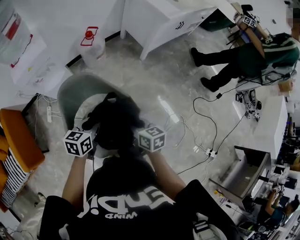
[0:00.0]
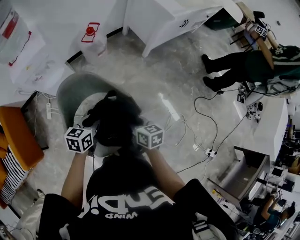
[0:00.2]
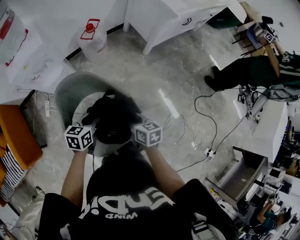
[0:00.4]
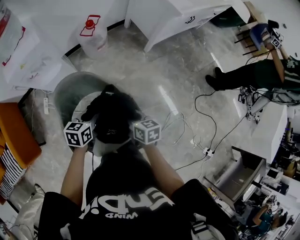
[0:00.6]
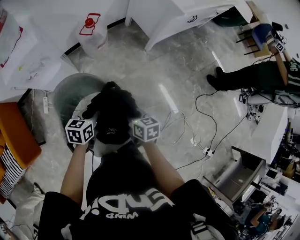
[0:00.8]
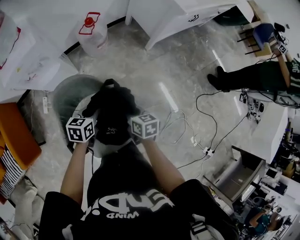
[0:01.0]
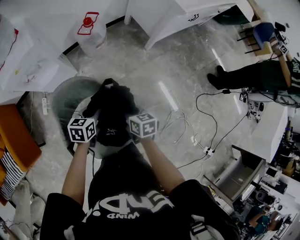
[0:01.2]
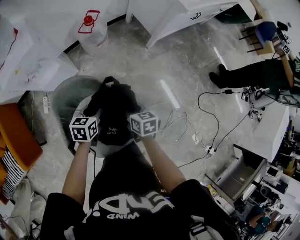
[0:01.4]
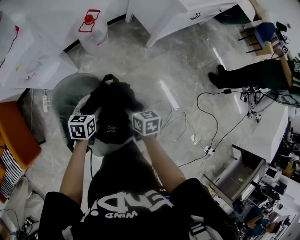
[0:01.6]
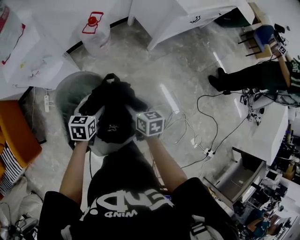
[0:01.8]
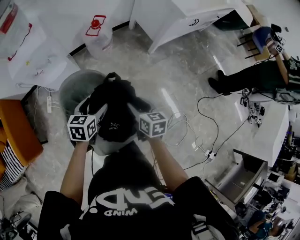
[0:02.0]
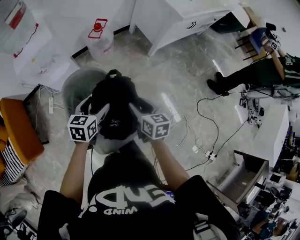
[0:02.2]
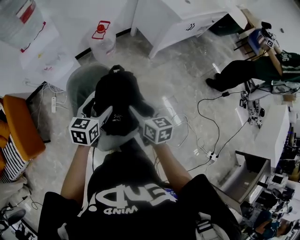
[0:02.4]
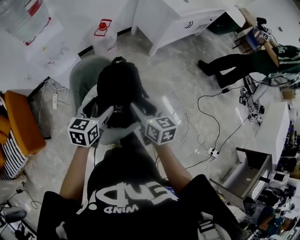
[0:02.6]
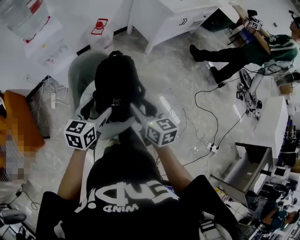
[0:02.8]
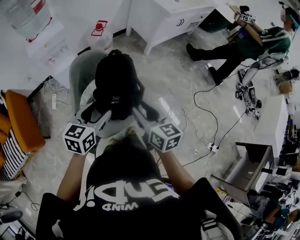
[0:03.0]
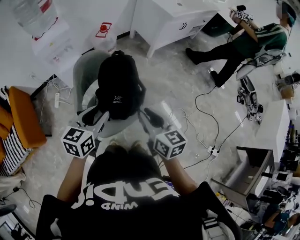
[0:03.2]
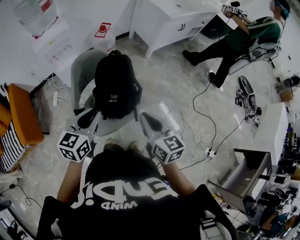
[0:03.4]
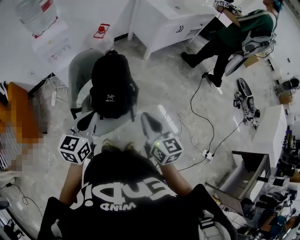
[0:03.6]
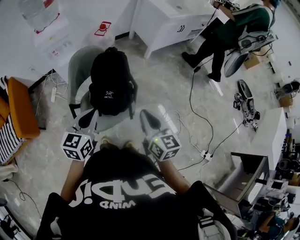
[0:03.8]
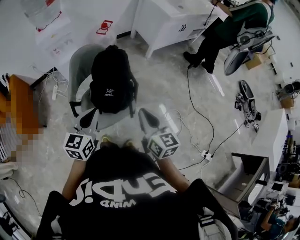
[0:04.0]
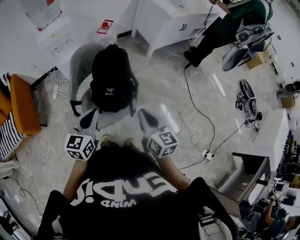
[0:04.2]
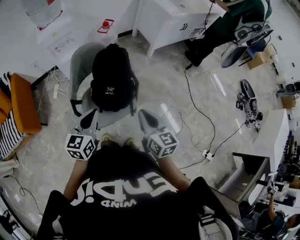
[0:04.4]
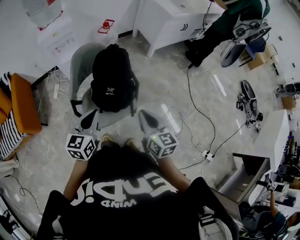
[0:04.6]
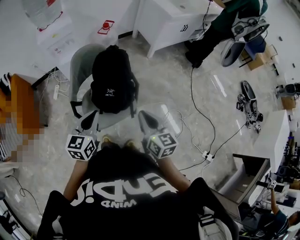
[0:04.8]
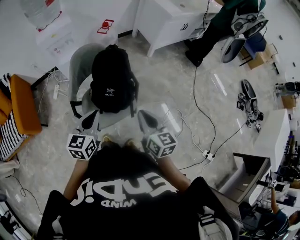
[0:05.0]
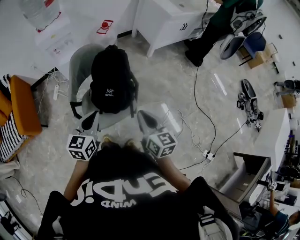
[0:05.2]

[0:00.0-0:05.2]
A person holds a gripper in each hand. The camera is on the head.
0:00.0 to 0:01.8: The grippers both shift forward and downward by about 15 cm. The left gripper opens up. Meanwhile the right gripper opens.
0:01.8 to 0:03.4: The two grippers go roughly 40 cm backward and upward. The right gripper rotates some 20 degrees, and closes up; the left gripper swivels some 30 degrees, and closes.
0:03.4 to 0:05.2: The left gripper travels downward by about 5 cm, while the right gripper shifts by about 5 cm.

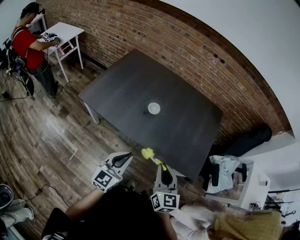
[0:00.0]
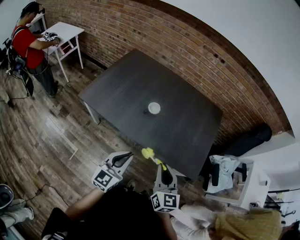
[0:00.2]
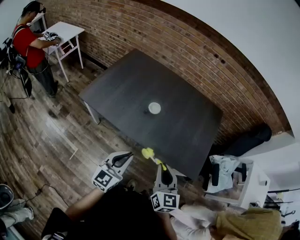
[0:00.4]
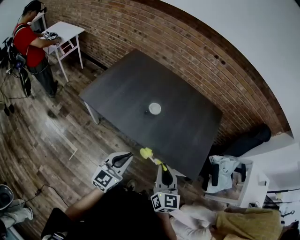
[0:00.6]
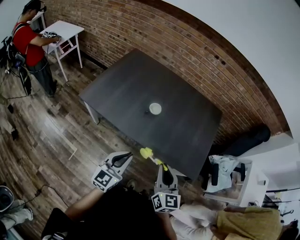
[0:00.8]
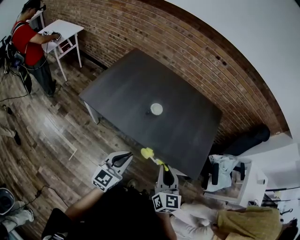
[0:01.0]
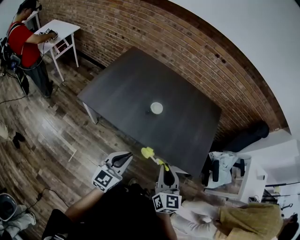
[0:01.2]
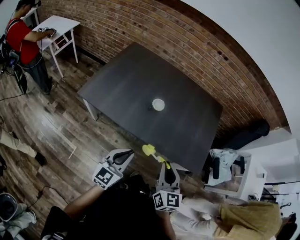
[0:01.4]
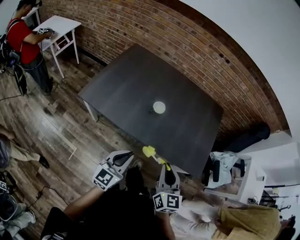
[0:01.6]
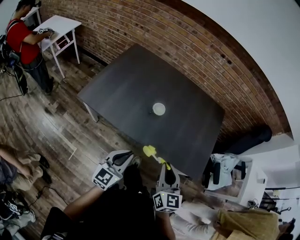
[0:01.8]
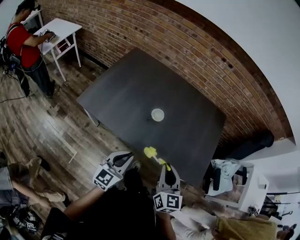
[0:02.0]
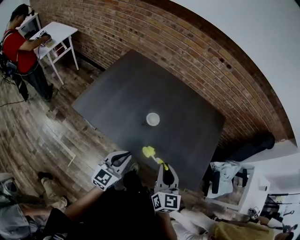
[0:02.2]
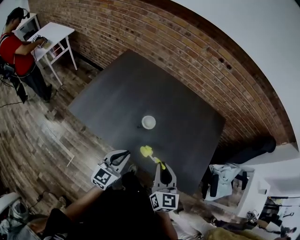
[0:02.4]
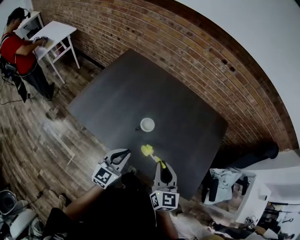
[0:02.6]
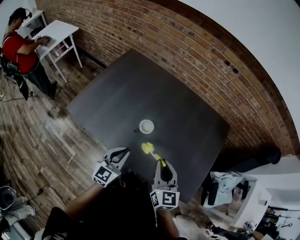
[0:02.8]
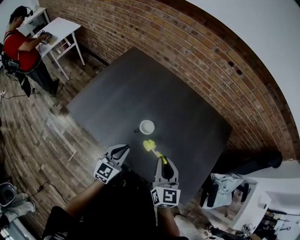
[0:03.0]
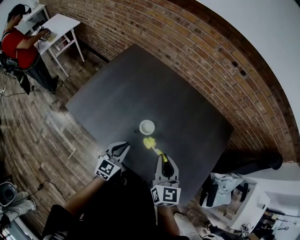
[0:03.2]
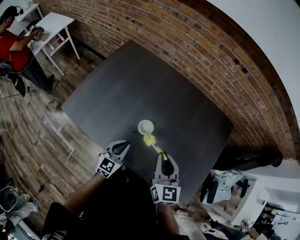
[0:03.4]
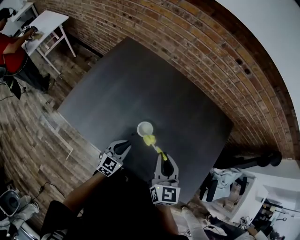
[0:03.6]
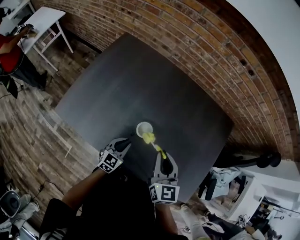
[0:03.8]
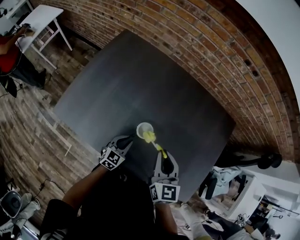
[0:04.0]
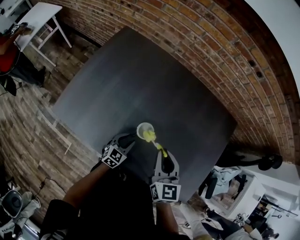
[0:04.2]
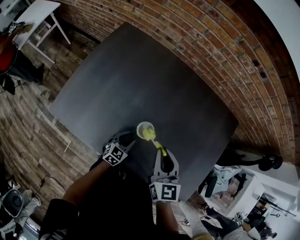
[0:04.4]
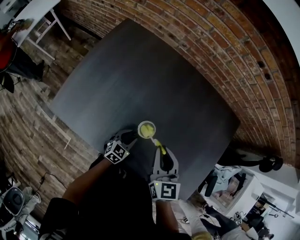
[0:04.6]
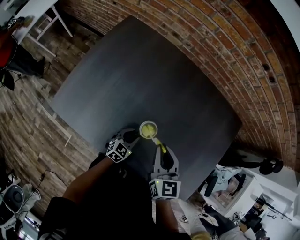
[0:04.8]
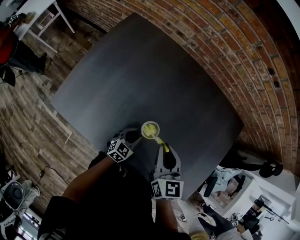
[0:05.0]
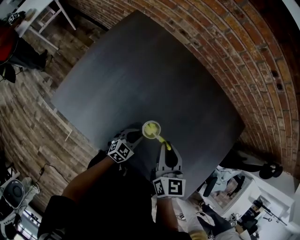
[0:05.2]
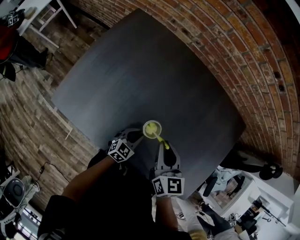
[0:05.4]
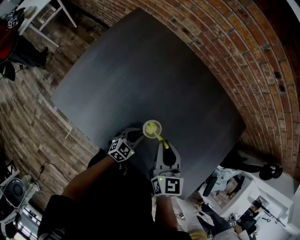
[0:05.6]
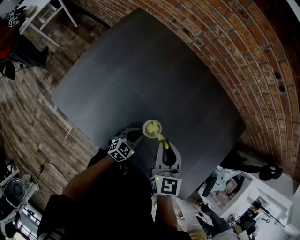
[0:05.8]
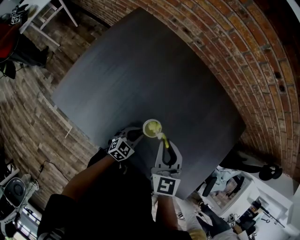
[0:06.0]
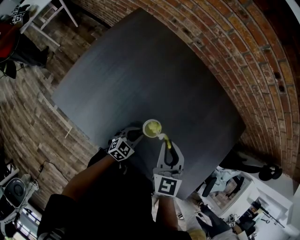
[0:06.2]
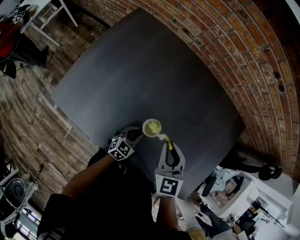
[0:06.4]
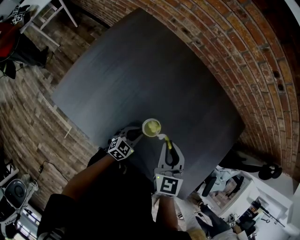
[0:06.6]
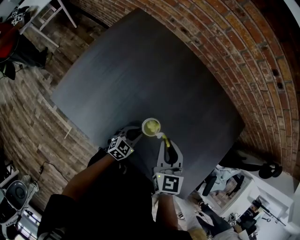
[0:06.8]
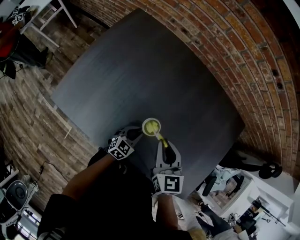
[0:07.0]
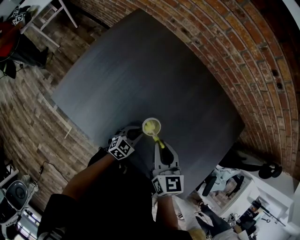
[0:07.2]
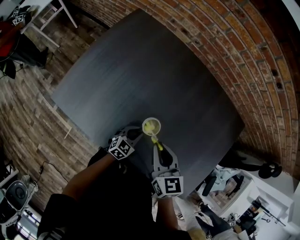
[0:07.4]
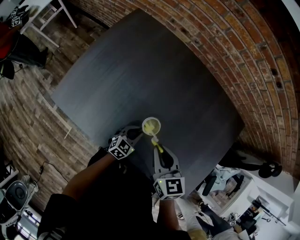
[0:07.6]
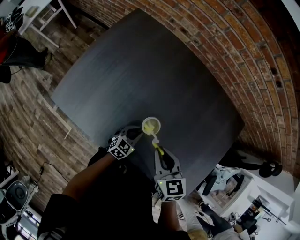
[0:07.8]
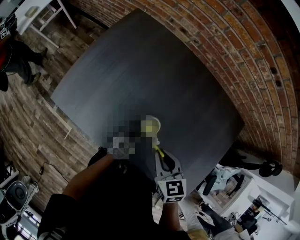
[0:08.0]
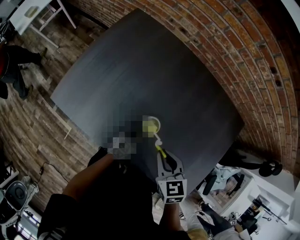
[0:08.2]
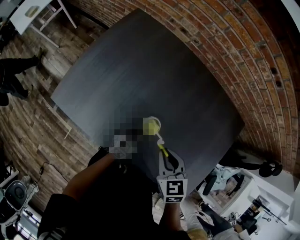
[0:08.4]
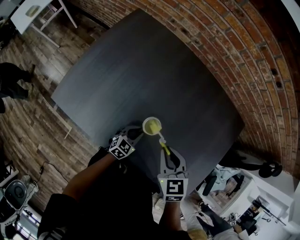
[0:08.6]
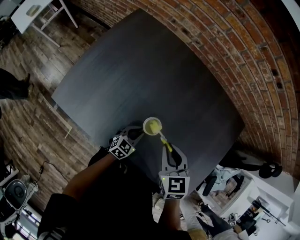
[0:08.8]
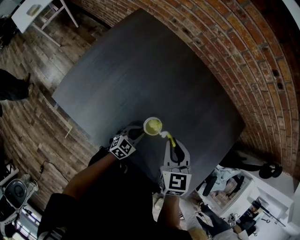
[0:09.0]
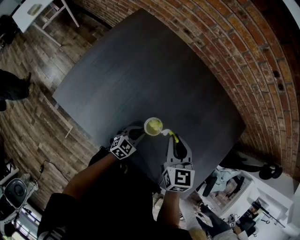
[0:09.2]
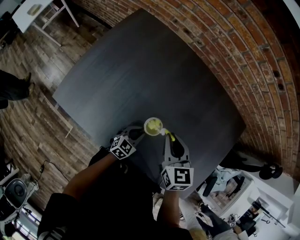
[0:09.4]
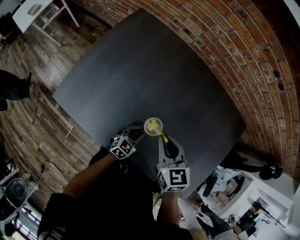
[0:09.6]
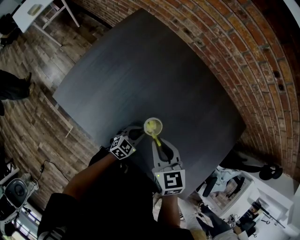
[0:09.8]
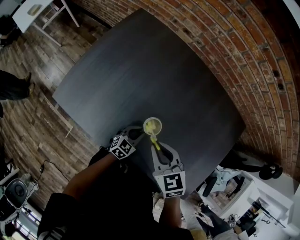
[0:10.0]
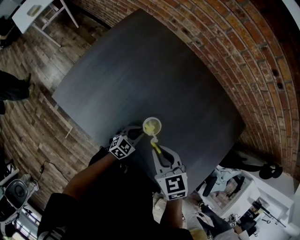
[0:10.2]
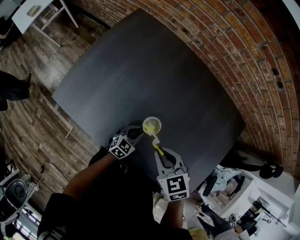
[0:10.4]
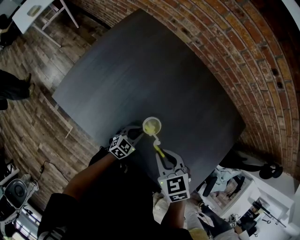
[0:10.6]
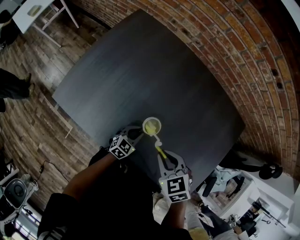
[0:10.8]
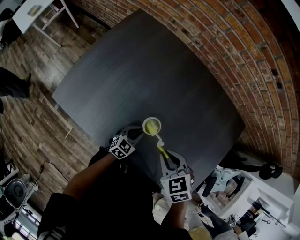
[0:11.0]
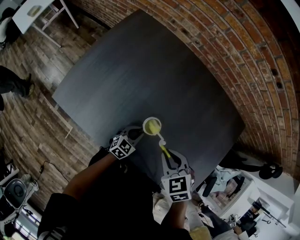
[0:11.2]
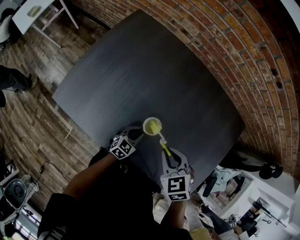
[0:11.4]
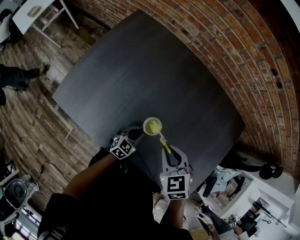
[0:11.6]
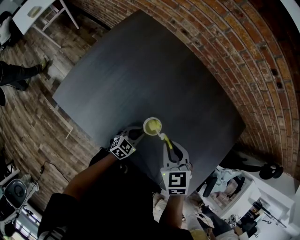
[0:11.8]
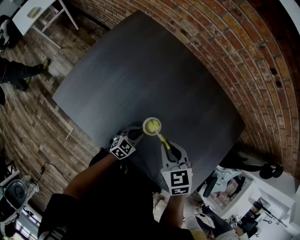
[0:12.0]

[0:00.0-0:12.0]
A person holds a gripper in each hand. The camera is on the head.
0:00.0 to 0:01.6: The grippers both shift to the left by roughly 5 cm.
0:01.6 to 0:03.0: The grippers both shift forward by some 25 cm.
0:03.0 to 0:04.4: The left gripper is displaced downward and forward by some 25 cm, changes its angle by approximately 30 degrees, and opens up, while the right gripper moves forward, to the left and downward, roughly 15 cm.
0:04.4 to 0:06.0: The right gripper changes place by approximately 5 cm.
0:06.0 to 0:07.6: The grippers stay close to where they were, moving slightly.
0:07.6 to 0:09.0: The grippers make only small movements.
0:09.0 to 0:10.4: The right gripper moves backward, about 5 cm, and rotates roughly 30 degrees.
0:10.4 to 0:12.0: There are only small adjustments of the grippers.

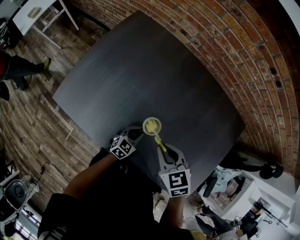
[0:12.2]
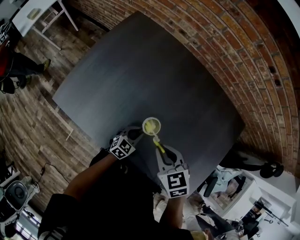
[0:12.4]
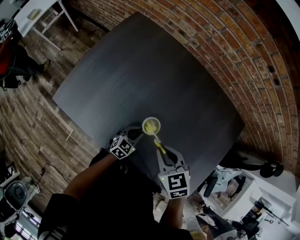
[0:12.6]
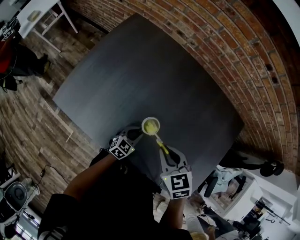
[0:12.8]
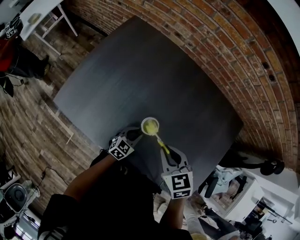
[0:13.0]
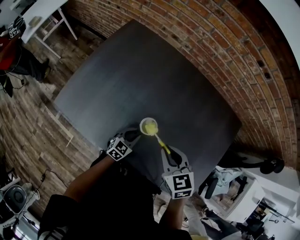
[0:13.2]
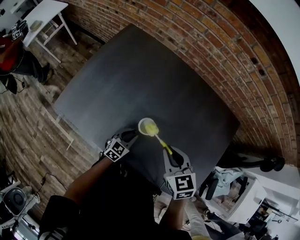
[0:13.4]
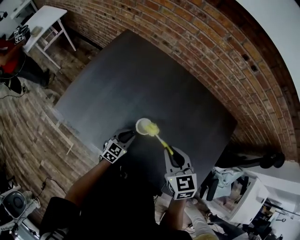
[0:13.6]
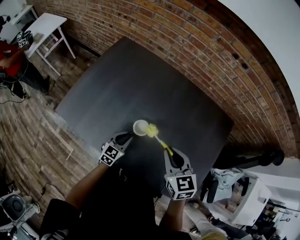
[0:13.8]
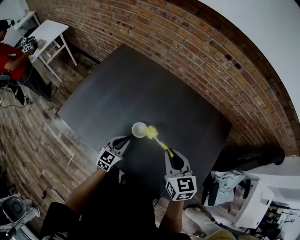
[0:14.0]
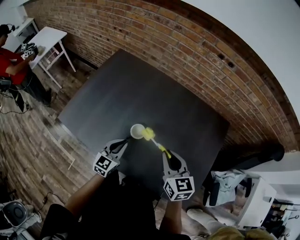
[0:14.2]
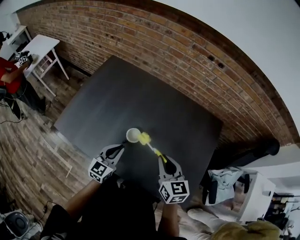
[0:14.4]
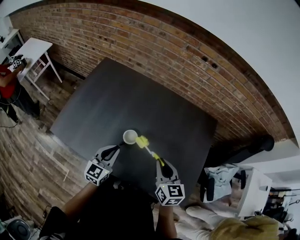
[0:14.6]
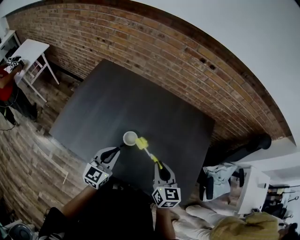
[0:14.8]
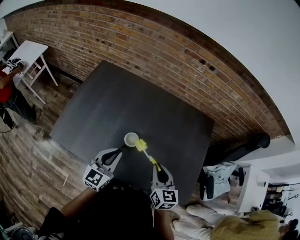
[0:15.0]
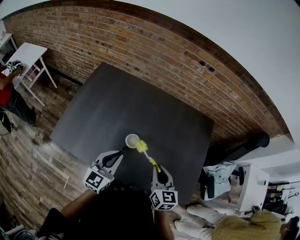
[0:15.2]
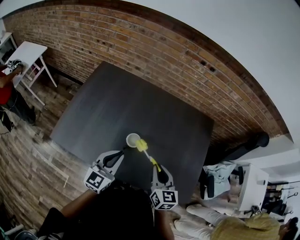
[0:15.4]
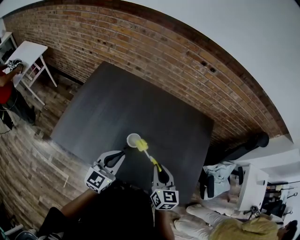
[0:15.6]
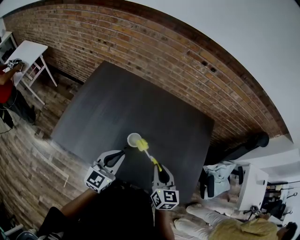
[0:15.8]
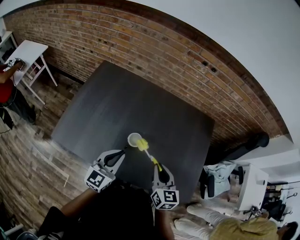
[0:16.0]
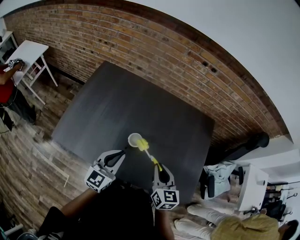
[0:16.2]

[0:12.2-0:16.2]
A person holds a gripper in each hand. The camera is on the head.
0:12.2 to 0:13.6: The right gripper is displaced to the right and upward by about 10 cm, while the left gripper is displaced upward by some 5 cm.
0:13.6 to 0:14.8: The right gripper moves backward, roughly 10 cm, and swivels approximately 30 degrees. The left gripper shifts about 20 cm upward, and changes its angle by roughly 20 degrees.
0:14.8 to 0:16.2: There are only small adjustments of the grippers.

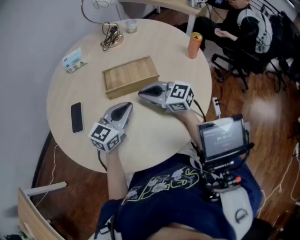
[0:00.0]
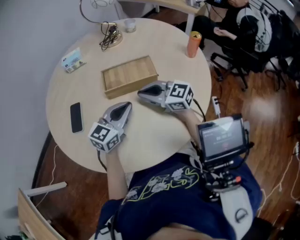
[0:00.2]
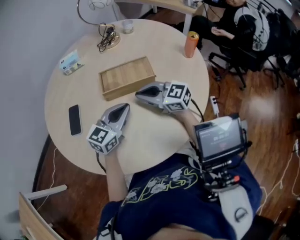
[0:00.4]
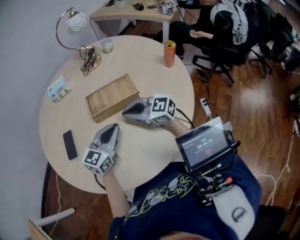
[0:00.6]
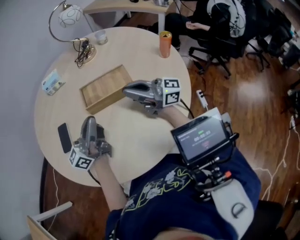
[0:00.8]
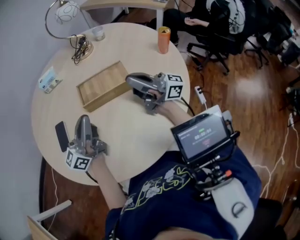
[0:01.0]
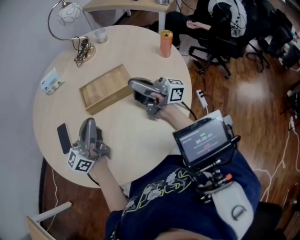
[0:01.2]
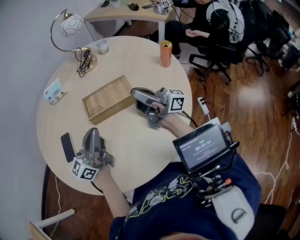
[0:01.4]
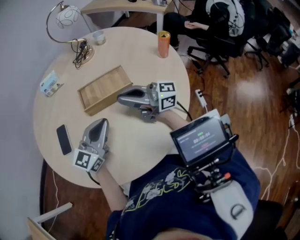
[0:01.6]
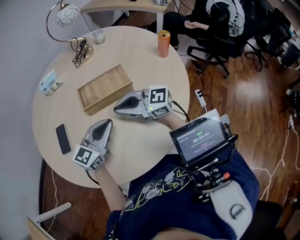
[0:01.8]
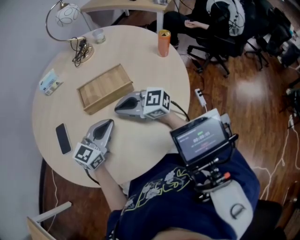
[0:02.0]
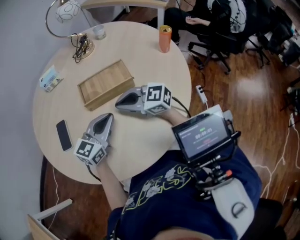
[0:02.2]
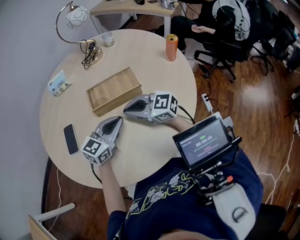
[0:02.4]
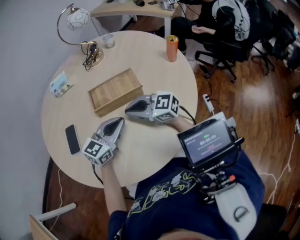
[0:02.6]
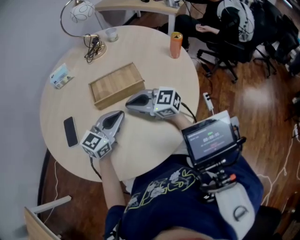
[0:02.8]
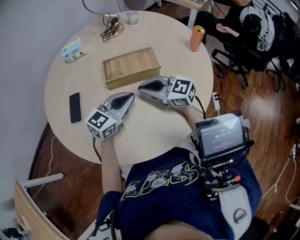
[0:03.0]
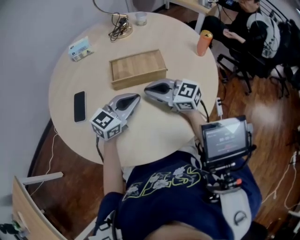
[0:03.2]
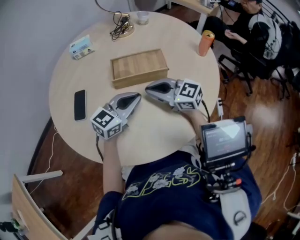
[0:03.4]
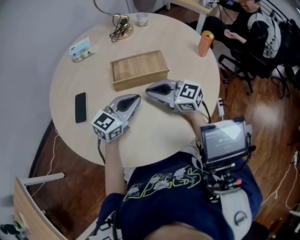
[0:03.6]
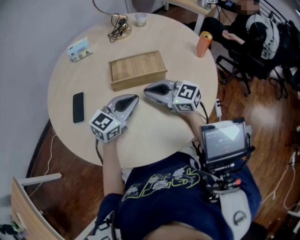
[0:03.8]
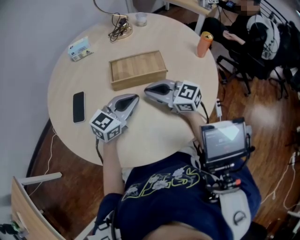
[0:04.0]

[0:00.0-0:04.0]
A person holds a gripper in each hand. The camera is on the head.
0:00.0 to 0:01.4: The right gripper travels to the right and upward by some 15 cm, and tilts its fingers about 50 degrees upward, while the left gripper is displaced upward and to the left by some 10 cm, and tilts its fingers roughly 30 degrees upward.
0:01.4 to 0:02.6: The left gripper shifts by roughly 10 cm, and tips its fingers downward by roughly 30 degrees. Meanwhile the right gripper changes place by some 15 cm, and angles its fingers downward, by approximately 50 degrees.
0:02.6 to 0:04.0: The grippers move only a little.
